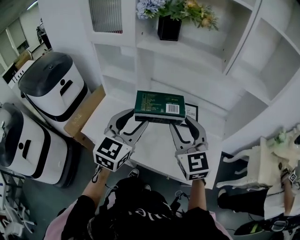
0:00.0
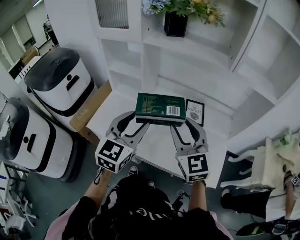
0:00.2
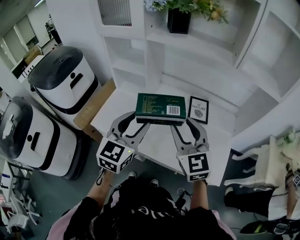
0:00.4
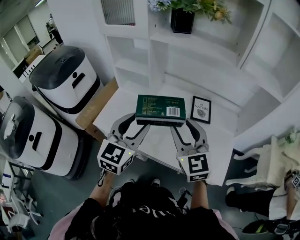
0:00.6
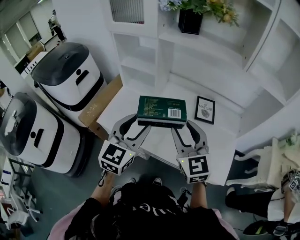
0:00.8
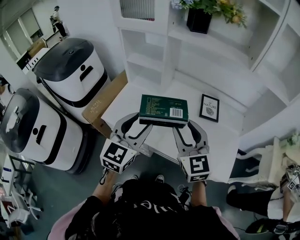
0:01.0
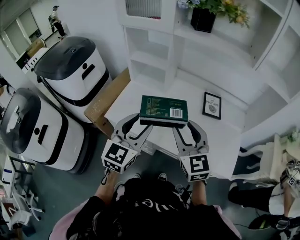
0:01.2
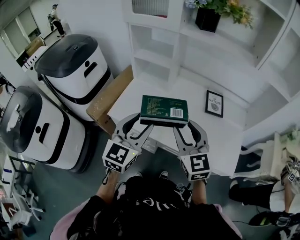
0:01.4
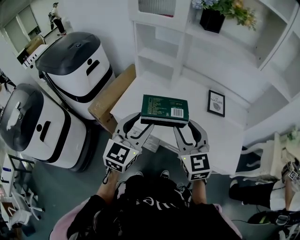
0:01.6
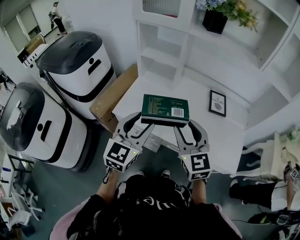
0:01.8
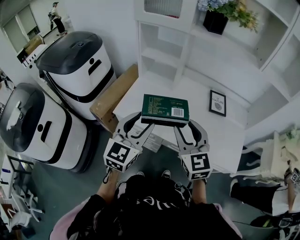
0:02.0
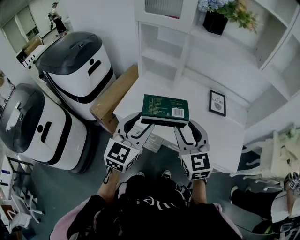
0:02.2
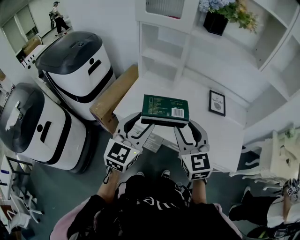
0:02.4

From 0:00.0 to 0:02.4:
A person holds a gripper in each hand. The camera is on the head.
From 0:00.0 to 0:01.2: The two grippers go approximately 15 cm to the left, backward and downward.
From 0:01.2 to 0:02.4: The grippers both shift to the left by some 10 cm.

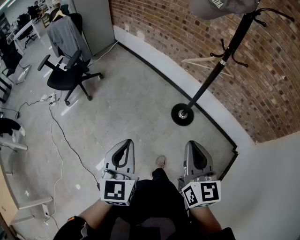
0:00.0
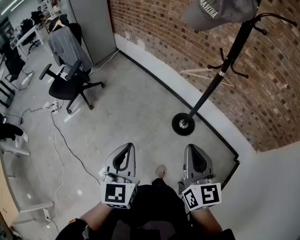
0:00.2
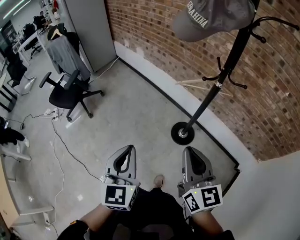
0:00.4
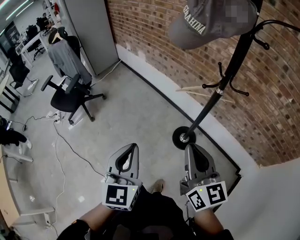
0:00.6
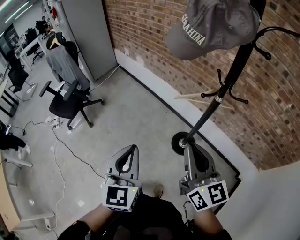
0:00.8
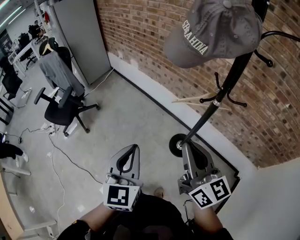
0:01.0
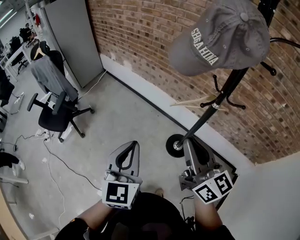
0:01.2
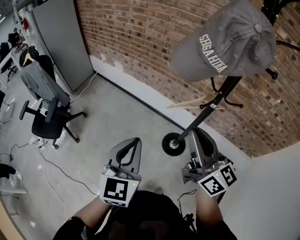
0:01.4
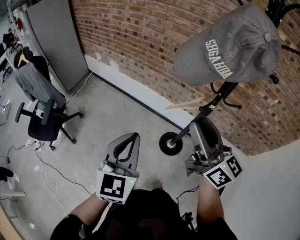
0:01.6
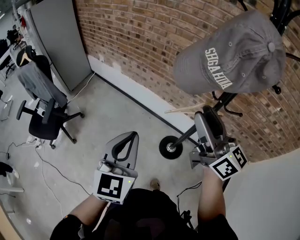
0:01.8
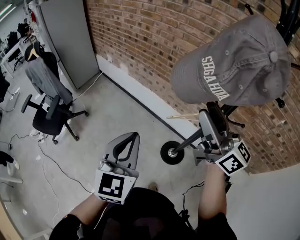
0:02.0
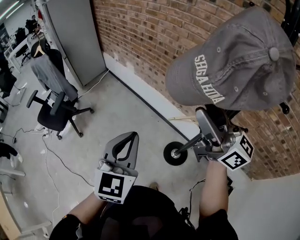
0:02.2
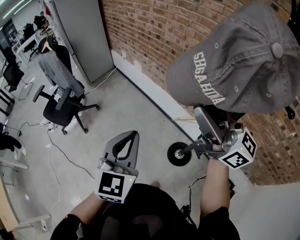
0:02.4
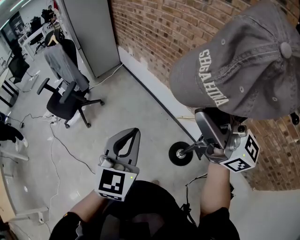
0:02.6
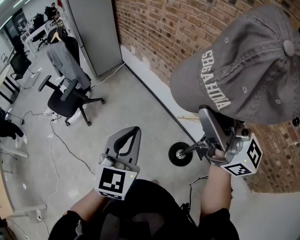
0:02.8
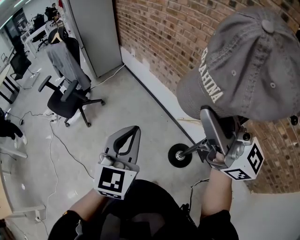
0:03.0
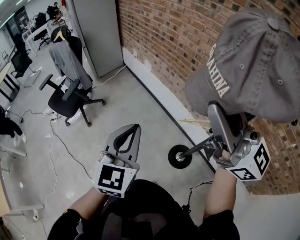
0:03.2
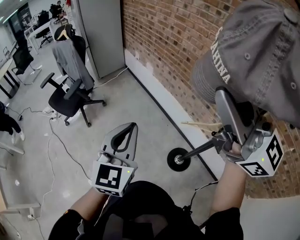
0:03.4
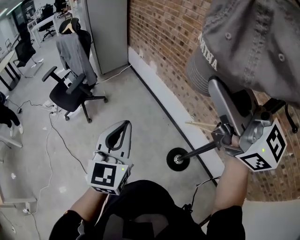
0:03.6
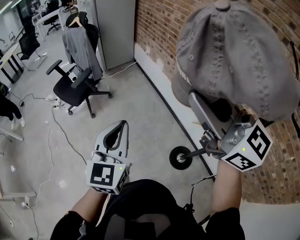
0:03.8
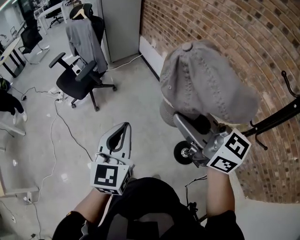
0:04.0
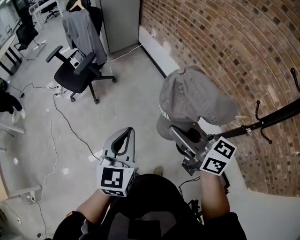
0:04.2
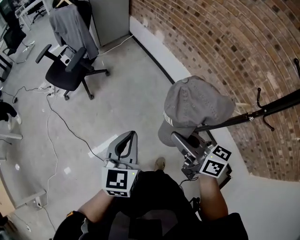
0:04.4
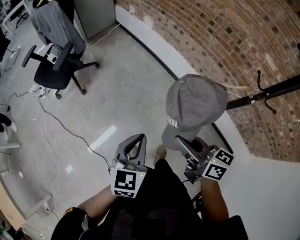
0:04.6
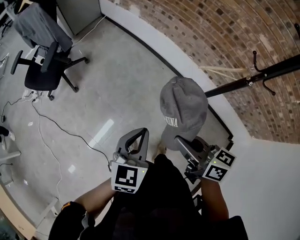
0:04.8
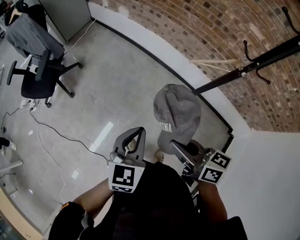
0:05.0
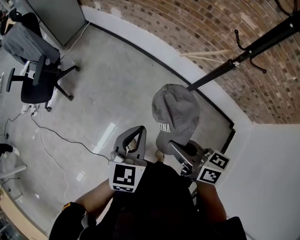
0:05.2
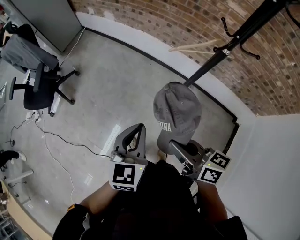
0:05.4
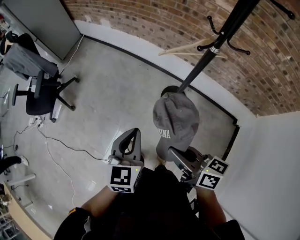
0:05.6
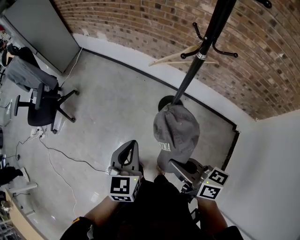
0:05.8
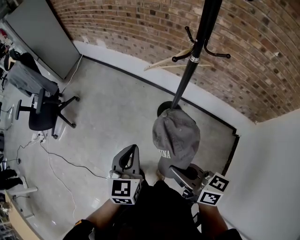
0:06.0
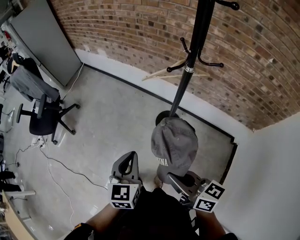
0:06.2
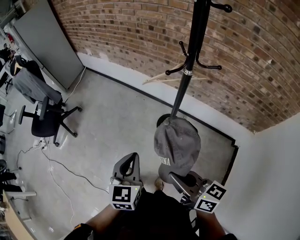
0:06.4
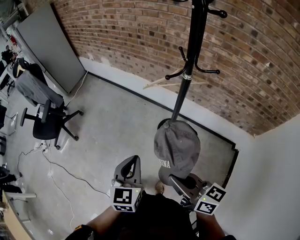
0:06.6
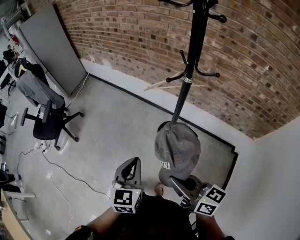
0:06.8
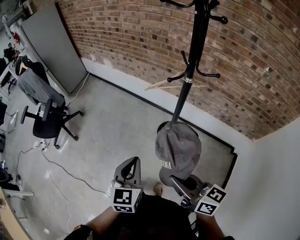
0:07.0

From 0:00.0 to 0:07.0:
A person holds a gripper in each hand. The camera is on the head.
From 0:00.0 to 0:01.4: The two grippers go approximately 30 cm forward. The right gripper swivels some 20 degrees, while the left gripper swivels about 20 degrees.
From 0:01.4 to 0:02.8: The right gripper goes approximately 10 cm upward, turns by roughly 40 degrees, and opens up. Meanwhile the left gripper shifts by approximately 10 cm.
From 0:02.8 to 0:04.2: The left gripper is displaced to the left by approximately 20 cm. Meanwhile the right gripper is displaced to the left and downward by roughly 30 cm, tilts its fingers roughly 30 degrees downward, and closes its fingers.
From 0:04.2 to 0:05.6: The right gripper ends up approximately 30 cm from where it was, and turns by approximately 40 degrees, while the left gripper changes place by some 20 cm, and changes its angle by roughly 30 degrees.
From 0:05.6 to 0:07.0: The two grippers go about 10 cm to the right and backward.

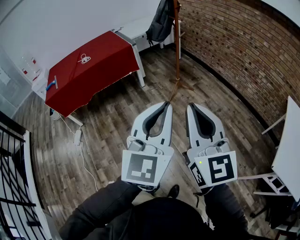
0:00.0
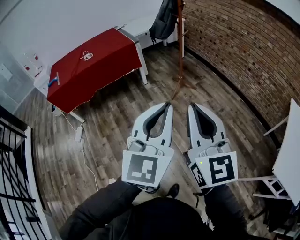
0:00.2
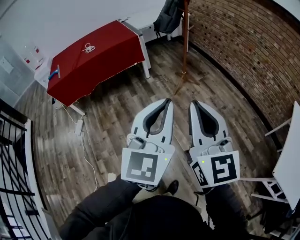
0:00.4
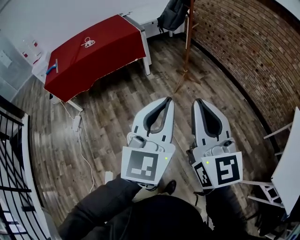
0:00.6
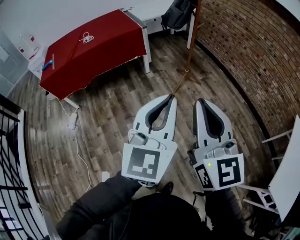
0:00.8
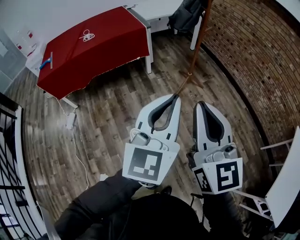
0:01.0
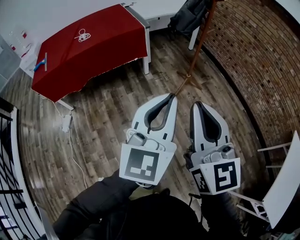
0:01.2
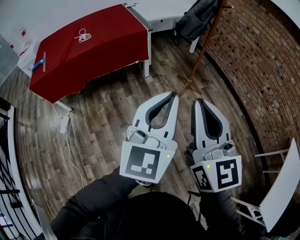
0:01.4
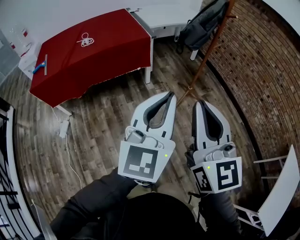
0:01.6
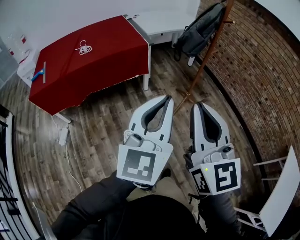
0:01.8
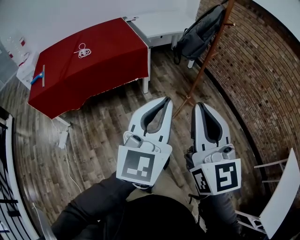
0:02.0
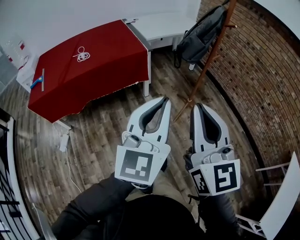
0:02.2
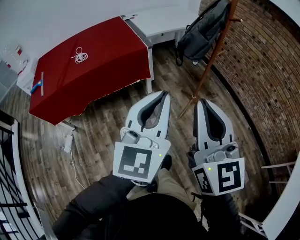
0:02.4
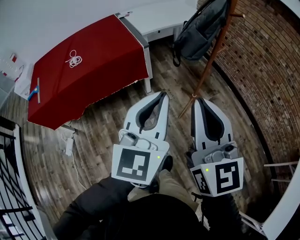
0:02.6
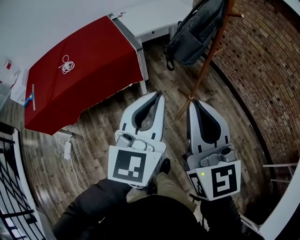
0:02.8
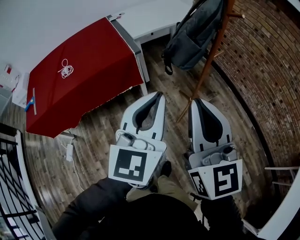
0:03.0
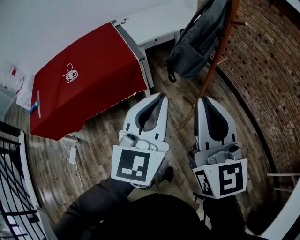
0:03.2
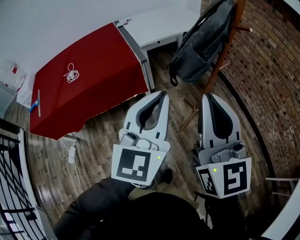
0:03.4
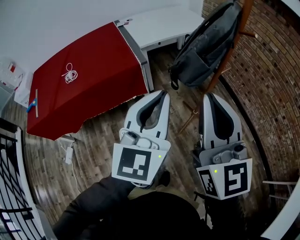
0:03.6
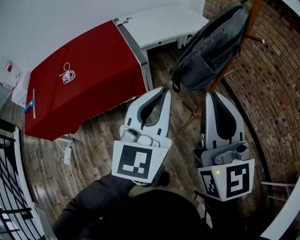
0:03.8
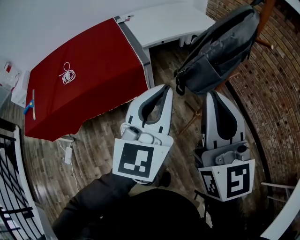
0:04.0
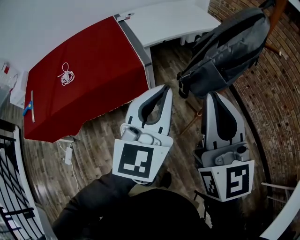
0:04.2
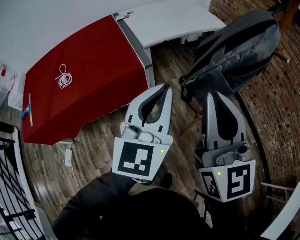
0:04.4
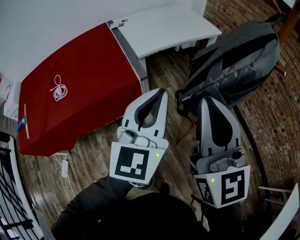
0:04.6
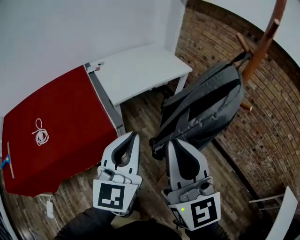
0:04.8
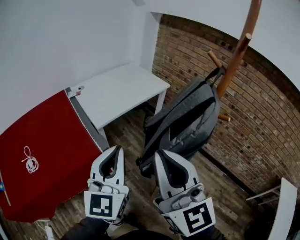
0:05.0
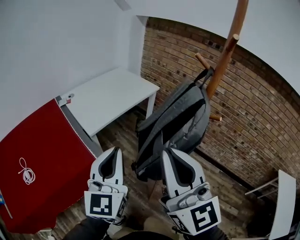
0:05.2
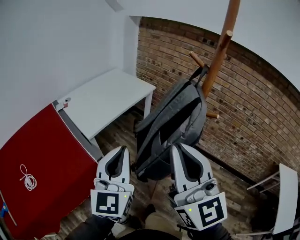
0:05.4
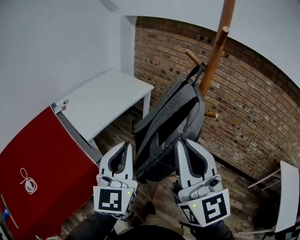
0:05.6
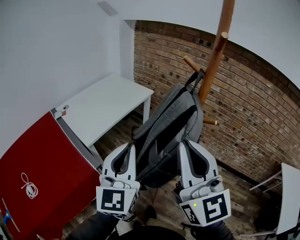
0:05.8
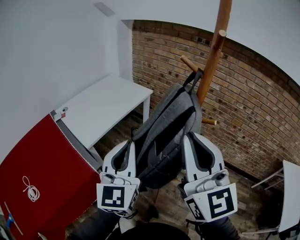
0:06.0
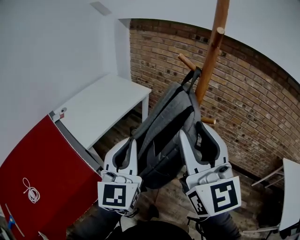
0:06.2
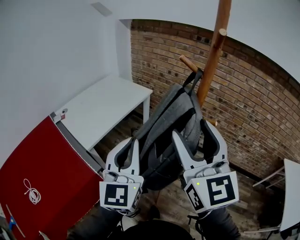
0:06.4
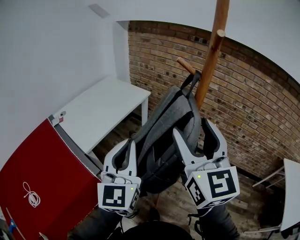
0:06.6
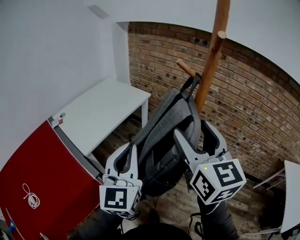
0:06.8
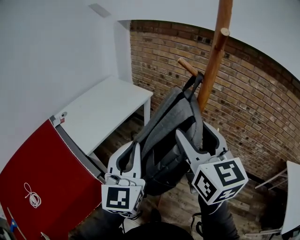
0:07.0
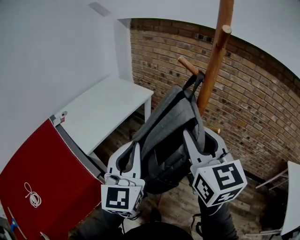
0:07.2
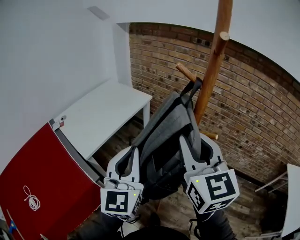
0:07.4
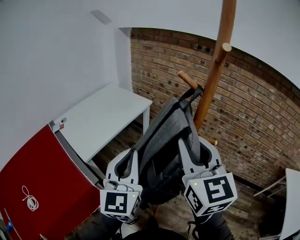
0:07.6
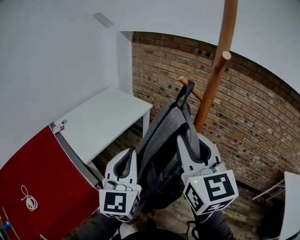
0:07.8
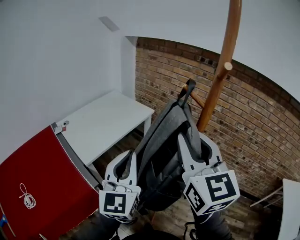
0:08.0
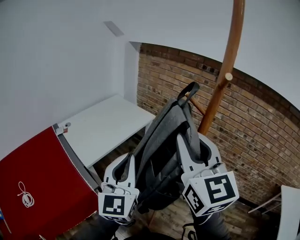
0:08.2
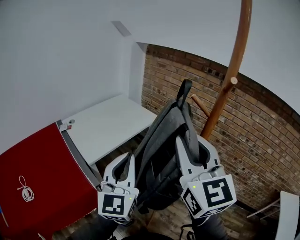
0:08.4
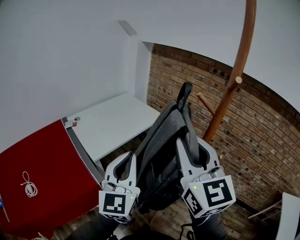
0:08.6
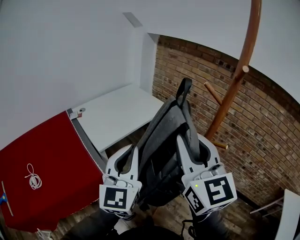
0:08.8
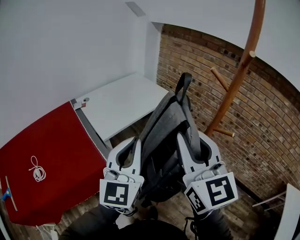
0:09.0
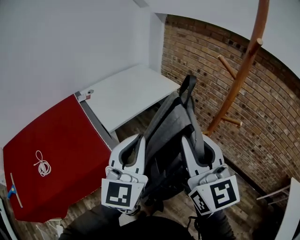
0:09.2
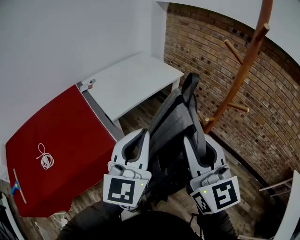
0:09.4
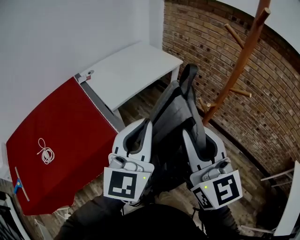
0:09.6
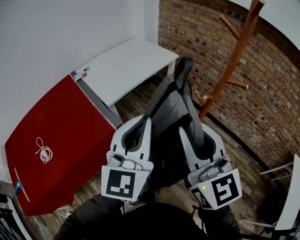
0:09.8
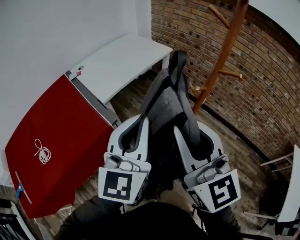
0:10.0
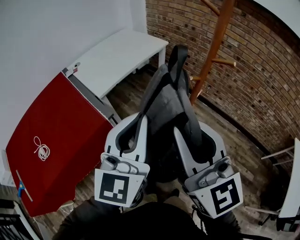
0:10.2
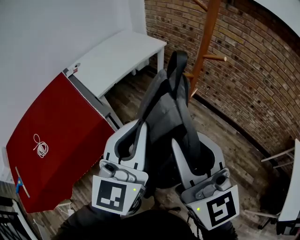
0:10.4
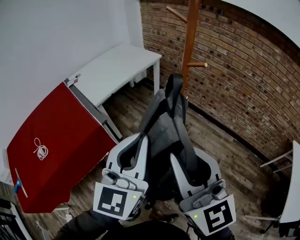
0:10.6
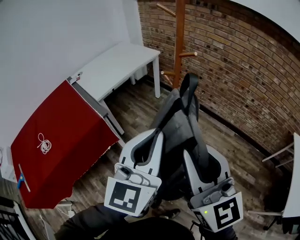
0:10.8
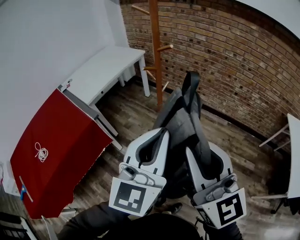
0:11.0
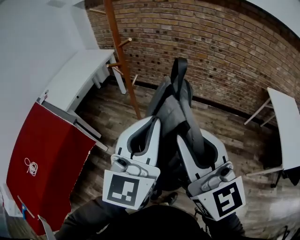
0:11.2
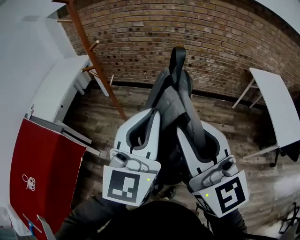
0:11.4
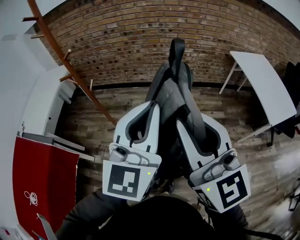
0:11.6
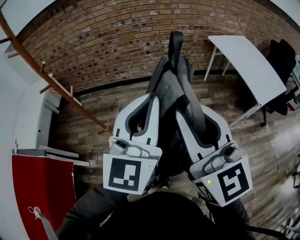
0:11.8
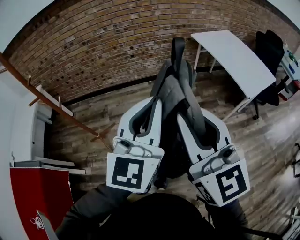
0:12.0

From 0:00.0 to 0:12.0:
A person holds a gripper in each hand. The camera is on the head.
From 0:00.0 to 0:01.6: The grippers both shift forward and to the left by roughly 35 cm.
From 0:01.6 to 0:03.0: The two grippers go about 25 cm forward.
From 0:03.0 to 0:04.4: The grippers both shift forward by about 20 cm.
From 0:04.4 to 0:06.0: The right gripper is displaced forward, upward and to the right by approximately 20 cm, and rotates approximately 30 degrees. The left gripper heads forward and upward, covering about 20 cm, and rotates roughly 20 degrees.
From 0:06.0 to 0:07.6: The right gripper moves forward, about 10 cm, and opens and closes again. The left gripper shifts some 5 cm forward.
From 0:07.6 to 0:09.0: The grippers both shift to the left and backward by approximately 10 cm.
From 0:09.0 to 0:10.4: The right gripper is displaced backward and downward by some 20 cm. Meanwhile the left gripper is displaced backward and to the right by about 15 cm.
From 0:10.4 to 0:12.0: Both grippers are carried some 60 cm. The right gripper swivels about 50 degrees; the left gripper changes its angle by some 50 degrees.

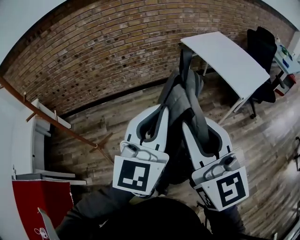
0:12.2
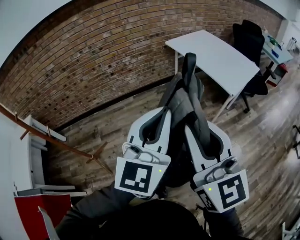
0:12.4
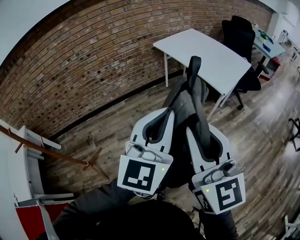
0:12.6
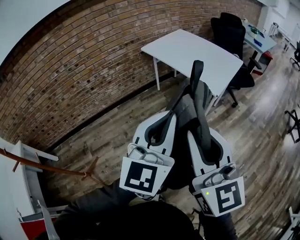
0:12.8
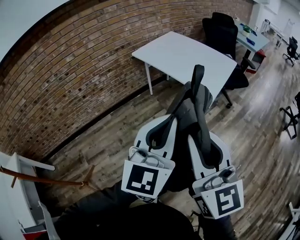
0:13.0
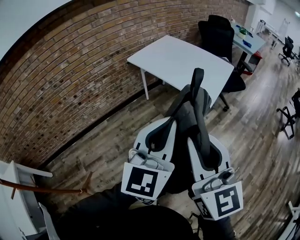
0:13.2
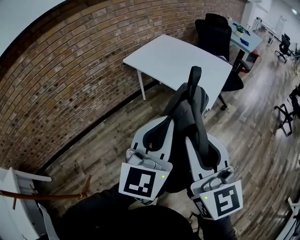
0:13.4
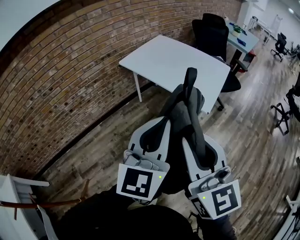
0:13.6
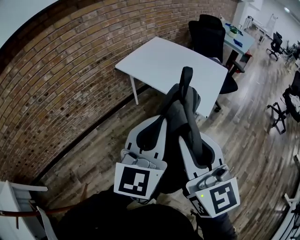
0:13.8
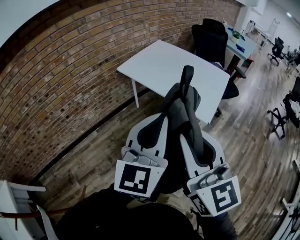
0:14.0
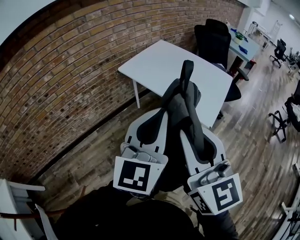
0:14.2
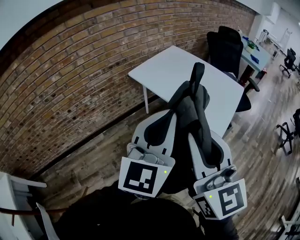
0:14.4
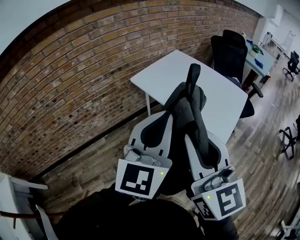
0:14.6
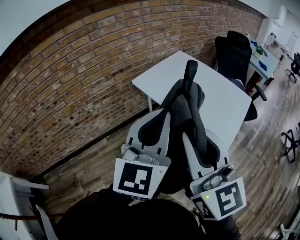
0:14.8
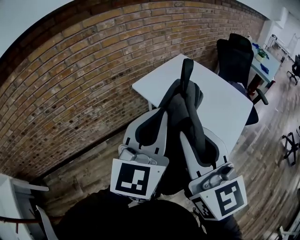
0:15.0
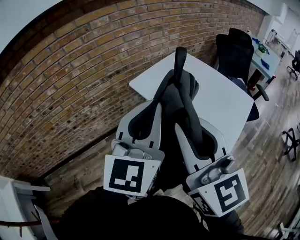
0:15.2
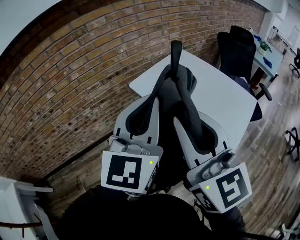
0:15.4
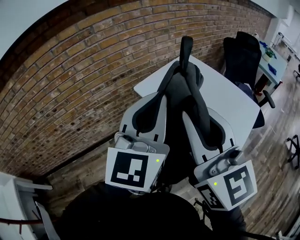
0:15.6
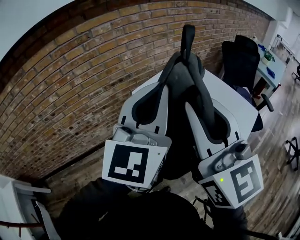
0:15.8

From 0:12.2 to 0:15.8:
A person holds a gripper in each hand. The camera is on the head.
From 0:12.2 to 0:14.0: The left gripper moves roughly 35 cm, and turns by approximately 30 degrees. Meanwhile the right gripper ends up roughly 30 cm from where it was, and changes its angle by about 30 degrees.
From 0:14.0 to 0:15.8: The two grippers go roughly 30 cm forward.
